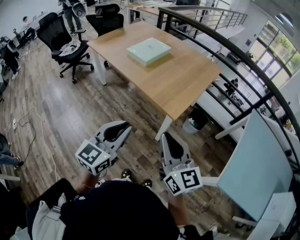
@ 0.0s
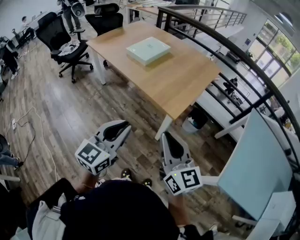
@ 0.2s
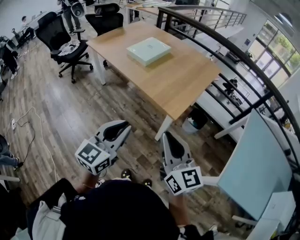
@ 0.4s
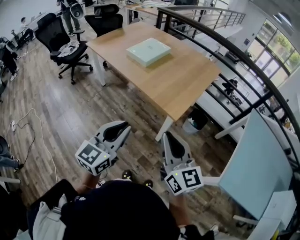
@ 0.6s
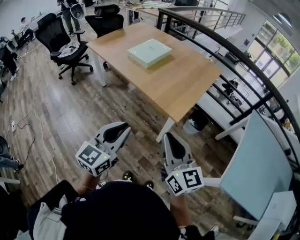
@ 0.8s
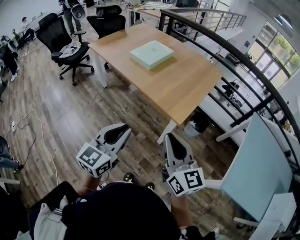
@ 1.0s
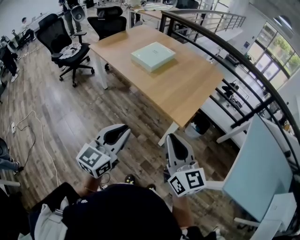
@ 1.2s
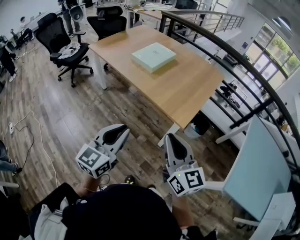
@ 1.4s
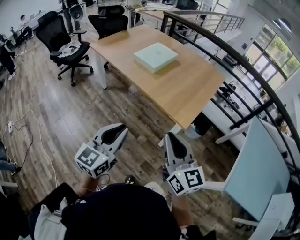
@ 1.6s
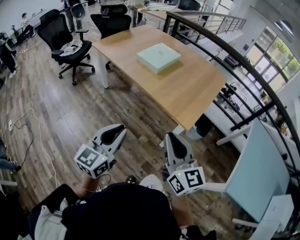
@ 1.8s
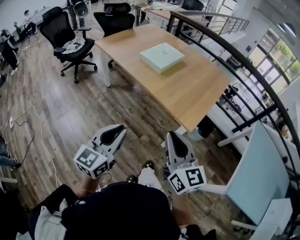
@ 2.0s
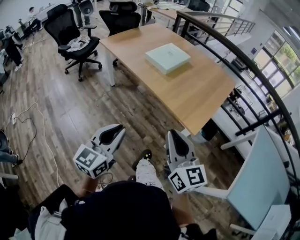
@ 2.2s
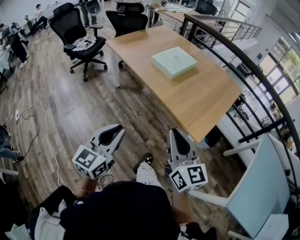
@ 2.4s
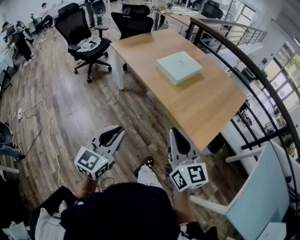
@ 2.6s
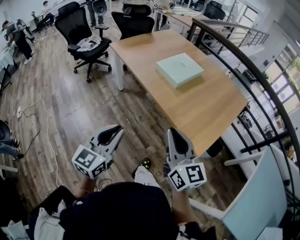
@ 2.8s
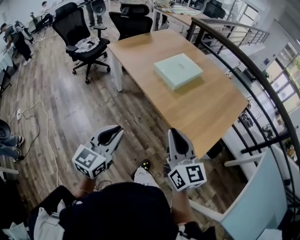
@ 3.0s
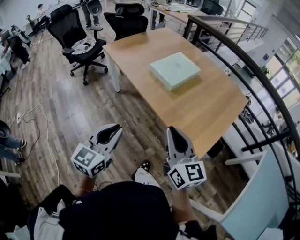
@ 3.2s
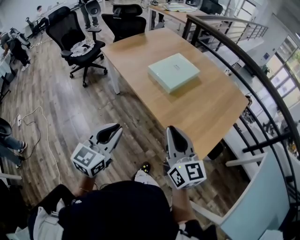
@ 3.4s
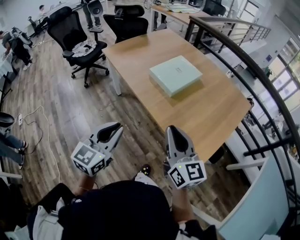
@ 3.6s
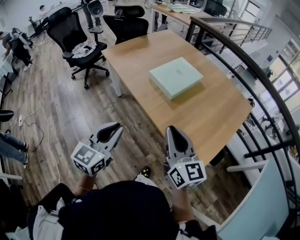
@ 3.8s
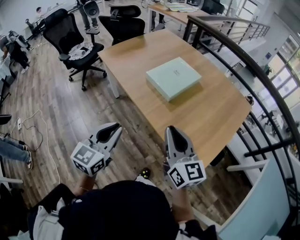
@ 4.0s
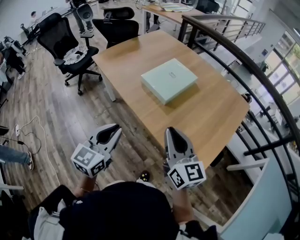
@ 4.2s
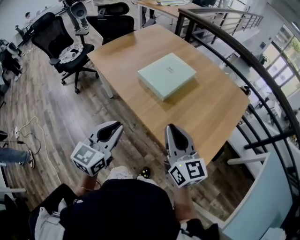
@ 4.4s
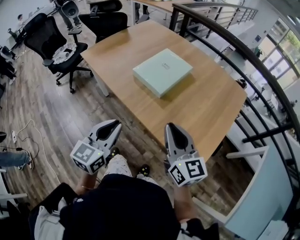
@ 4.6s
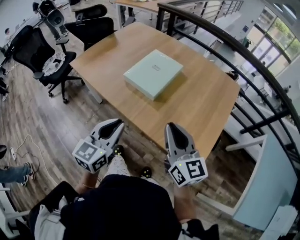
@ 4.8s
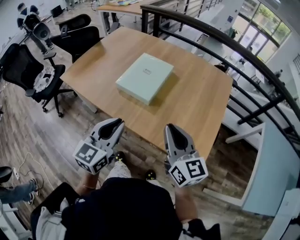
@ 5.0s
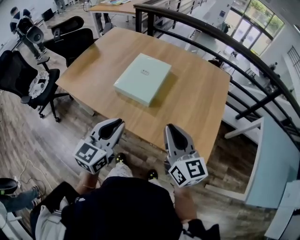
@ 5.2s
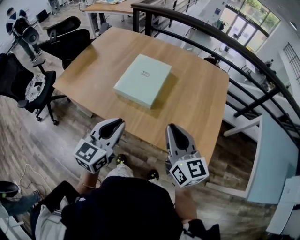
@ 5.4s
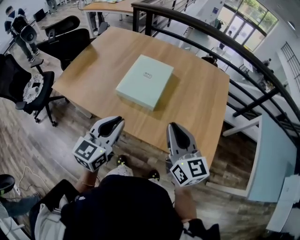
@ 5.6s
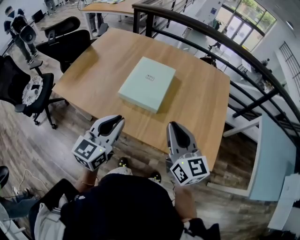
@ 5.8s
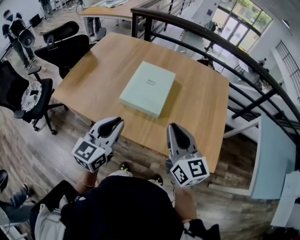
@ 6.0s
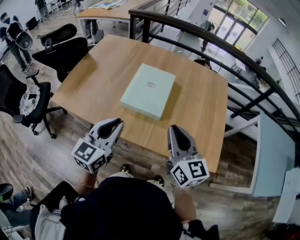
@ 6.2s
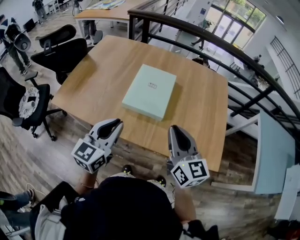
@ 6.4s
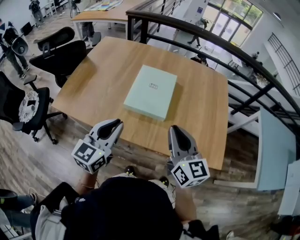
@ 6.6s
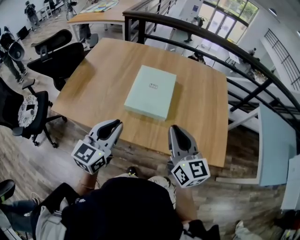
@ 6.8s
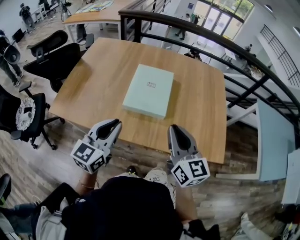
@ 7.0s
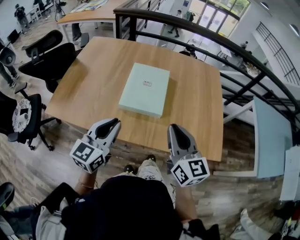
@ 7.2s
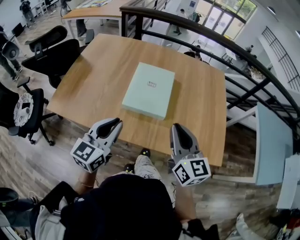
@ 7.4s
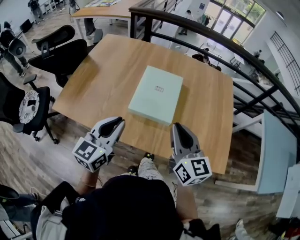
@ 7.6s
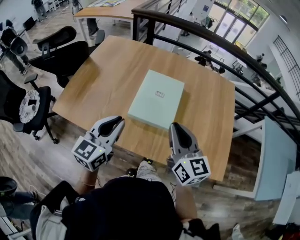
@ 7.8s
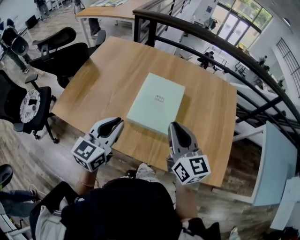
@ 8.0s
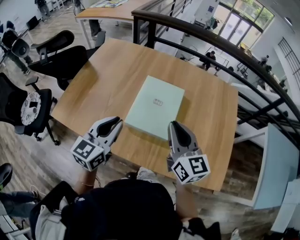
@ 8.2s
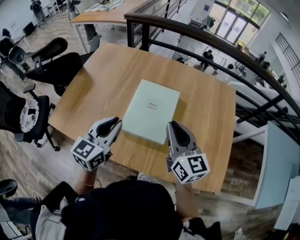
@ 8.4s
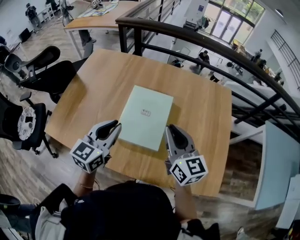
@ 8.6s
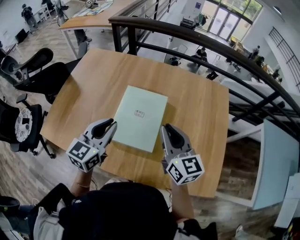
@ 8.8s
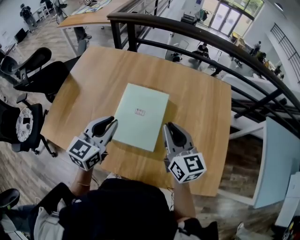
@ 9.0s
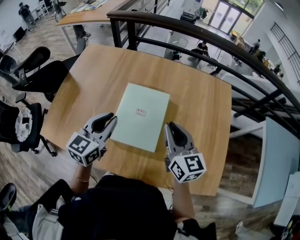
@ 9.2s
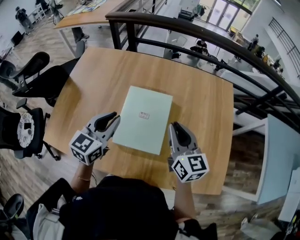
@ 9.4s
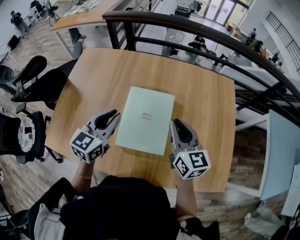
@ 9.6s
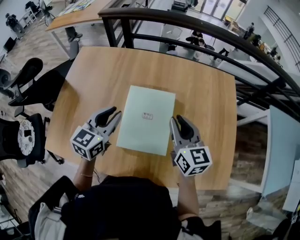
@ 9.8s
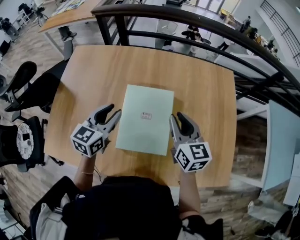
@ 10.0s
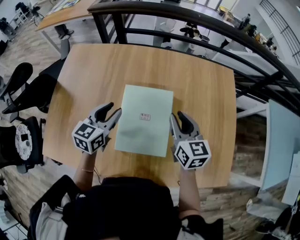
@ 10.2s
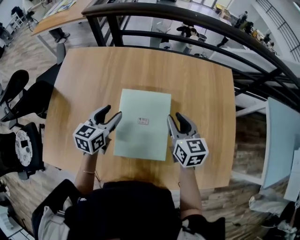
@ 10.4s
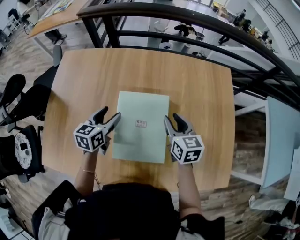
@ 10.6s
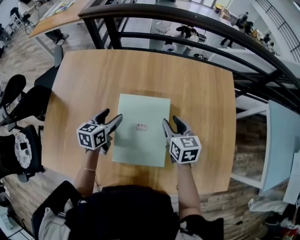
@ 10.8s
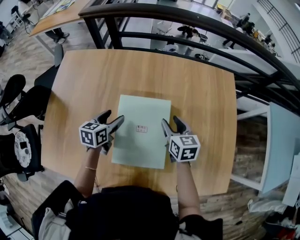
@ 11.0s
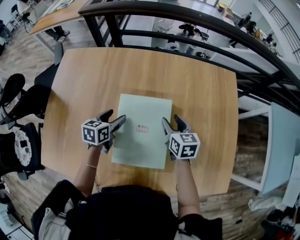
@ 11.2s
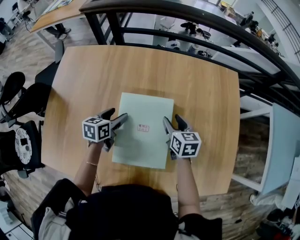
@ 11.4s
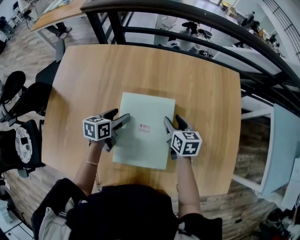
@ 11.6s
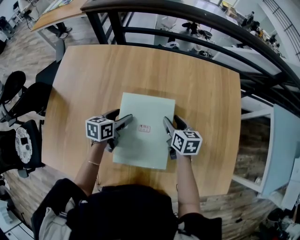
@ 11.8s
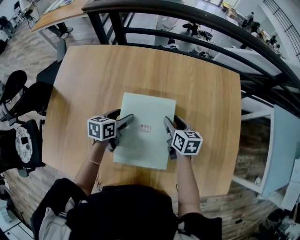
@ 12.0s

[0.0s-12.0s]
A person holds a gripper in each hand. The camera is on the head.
0.0s to 1.6s: Both grippers travel together to the left, about 10 cm.
1.6s to 3.0s: The left gripper moves forward and to the left, some 20 cm; the right gripper shifts about 20 cm forward.
3.0s to 4.4s: Both grippers move forward, some 20 cm.
4.4s to 6.0s: The right gripper shifts by some 15 cm, and swivels approximately 30 degrees. Meanwhile the left gripper shifts by approximately 25 cm, and swivels some 30 degrees.
6.0s to 7.6s: The grippers both shift to the left and forward by roughly 10 cm.
7.6s to 9.0s: The two grippers go approximately 20 cm forward.
9.0s to 10.4s: The right gripper goes roughly 15 cm forward and downward, and rotates about 20 degrees. Meanwhile the left gripper moves forward, downward and to the left, roughly 20 cm, and opens its fingers.
10.4s to 12.0s: The left gripper shifts approximately 10 cm downward, and changes its angle by approximately 20 degrees. Meanwhile the right gripper travels downward and forward by about 15 cm, and opens.

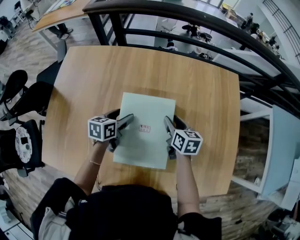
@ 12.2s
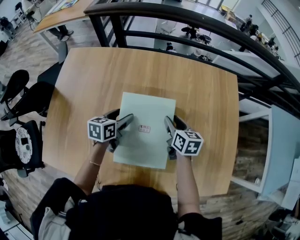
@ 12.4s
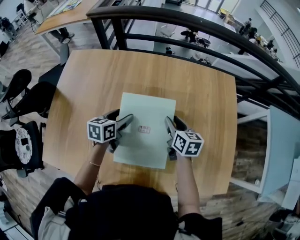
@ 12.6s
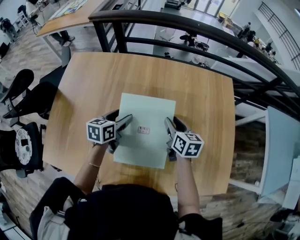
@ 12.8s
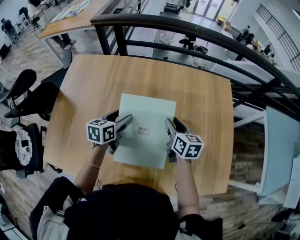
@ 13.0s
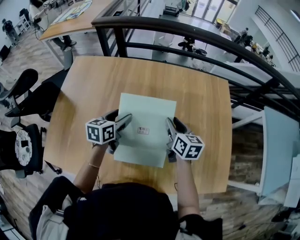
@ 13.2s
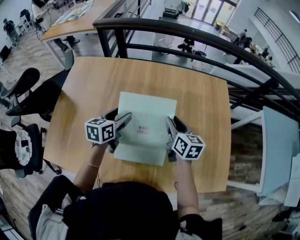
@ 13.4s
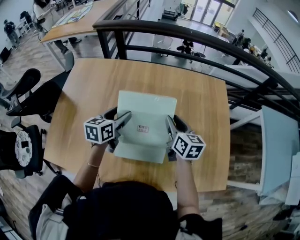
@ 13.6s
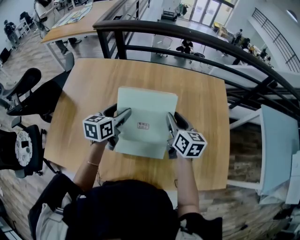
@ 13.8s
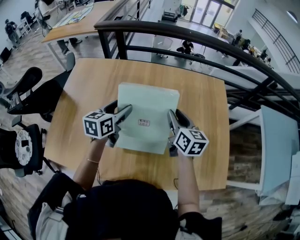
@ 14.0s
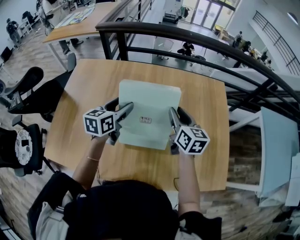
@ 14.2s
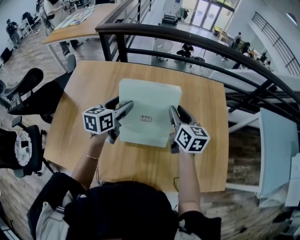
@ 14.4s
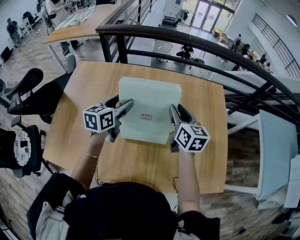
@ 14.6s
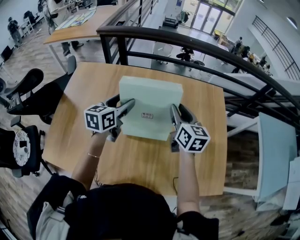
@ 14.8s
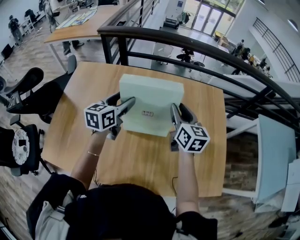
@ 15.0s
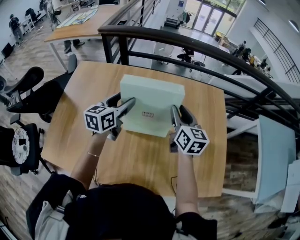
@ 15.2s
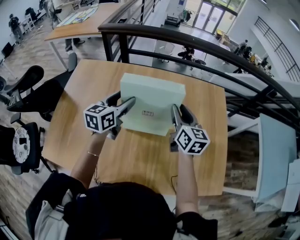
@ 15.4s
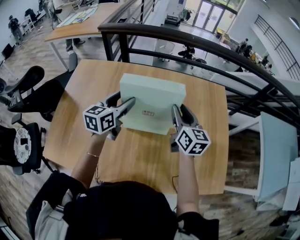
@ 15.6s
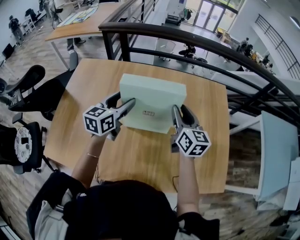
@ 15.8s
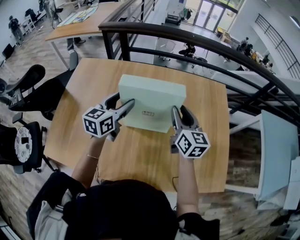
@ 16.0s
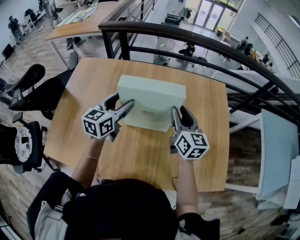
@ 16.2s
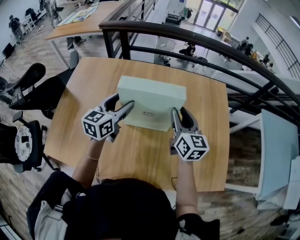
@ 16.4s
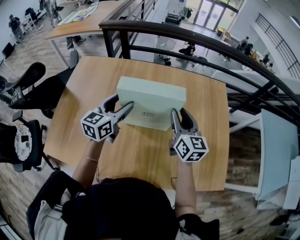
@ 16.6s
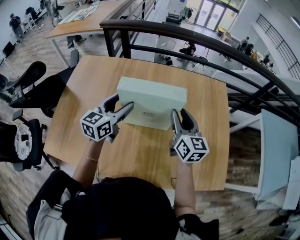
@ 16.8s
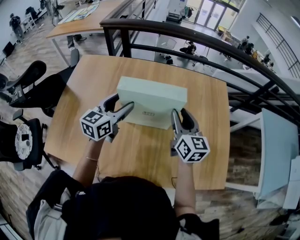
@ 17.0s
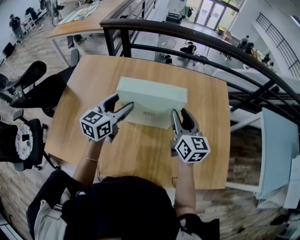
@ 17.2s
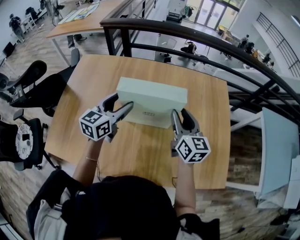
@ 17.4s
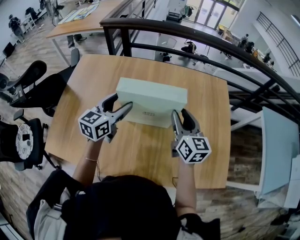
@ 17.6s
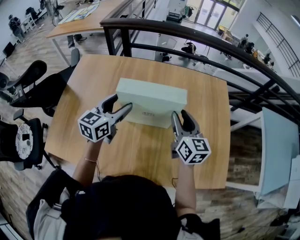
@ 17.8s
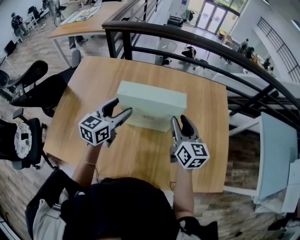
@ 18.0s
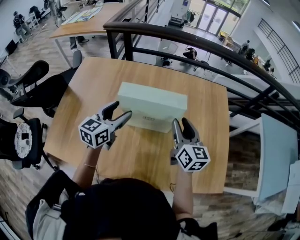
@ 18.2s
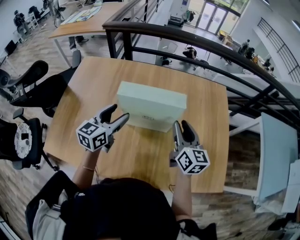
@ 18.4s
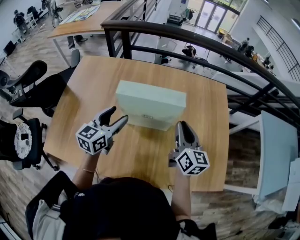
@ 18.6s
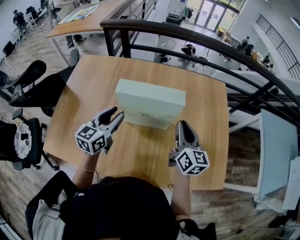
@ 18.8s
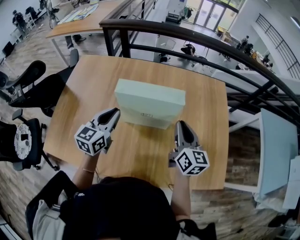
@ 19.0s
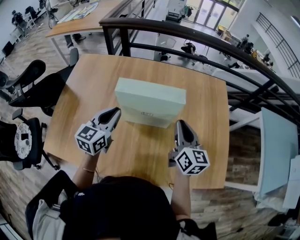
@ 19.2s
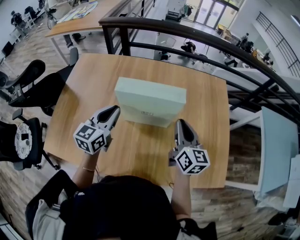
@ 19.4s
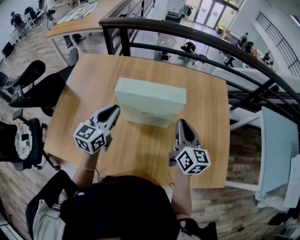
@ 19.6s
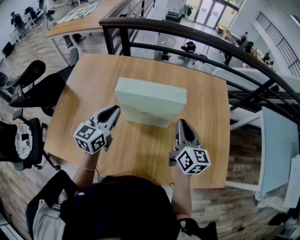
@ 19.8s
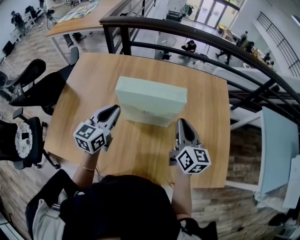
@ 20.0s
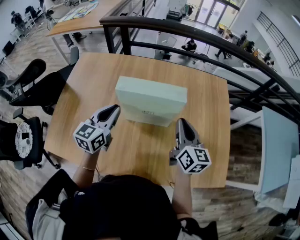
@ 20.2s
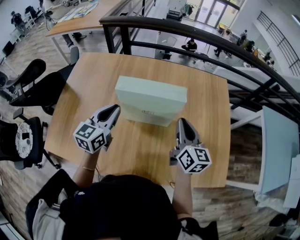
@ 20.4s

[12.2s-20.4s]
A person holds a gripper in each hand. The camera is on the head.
12.2s to 13.8s: Both grippers travel together upward and backward, some 15 cm.
13.8s to 15.4s: The two grippers go roughly 5 cm upward.
15.4s to 17.2s: The two grippers go about 5 cm backward.
17.2s to 18.8s: The left gripper ends up about 5 cm from where it was, and closes its fingers.
18.8s to 20.4s: The left gripper closes up.

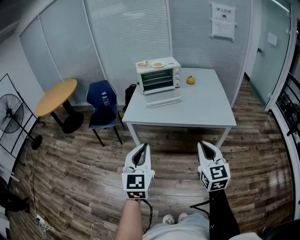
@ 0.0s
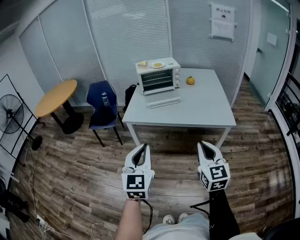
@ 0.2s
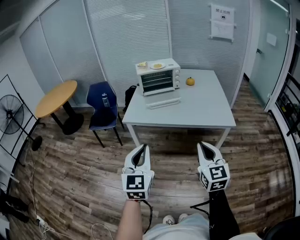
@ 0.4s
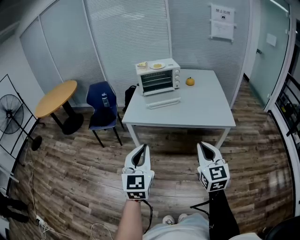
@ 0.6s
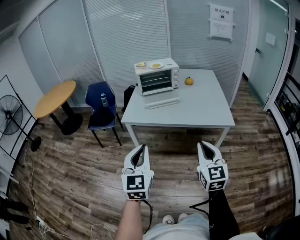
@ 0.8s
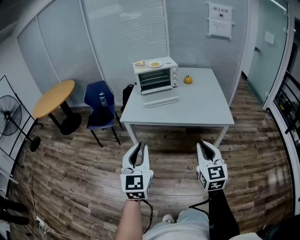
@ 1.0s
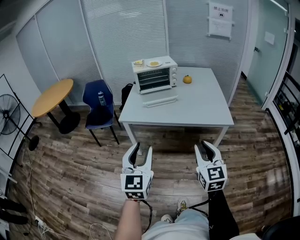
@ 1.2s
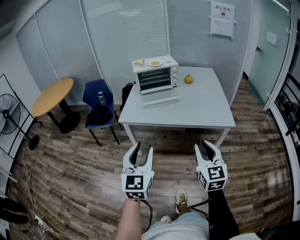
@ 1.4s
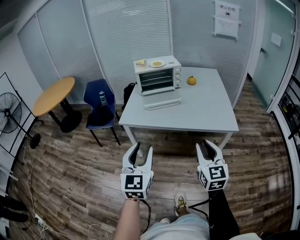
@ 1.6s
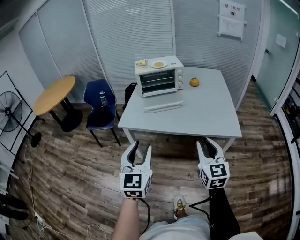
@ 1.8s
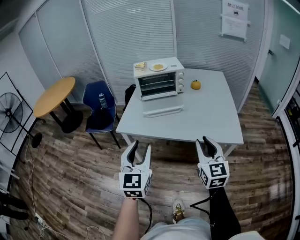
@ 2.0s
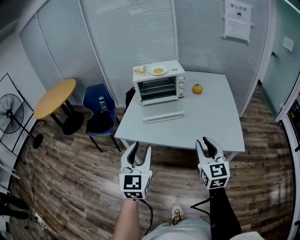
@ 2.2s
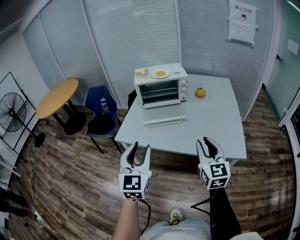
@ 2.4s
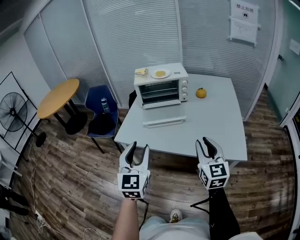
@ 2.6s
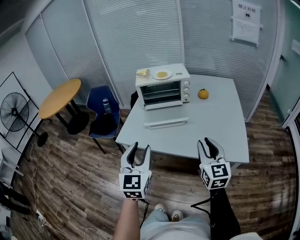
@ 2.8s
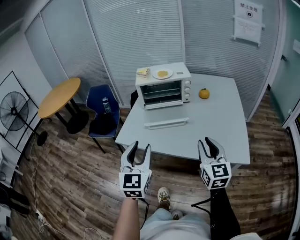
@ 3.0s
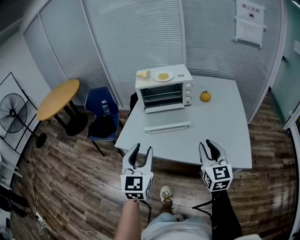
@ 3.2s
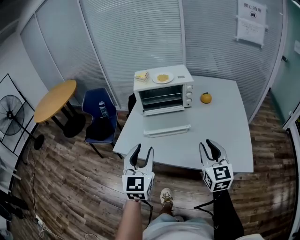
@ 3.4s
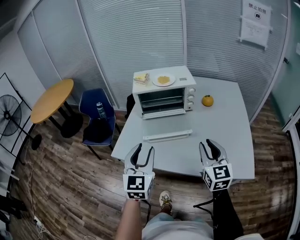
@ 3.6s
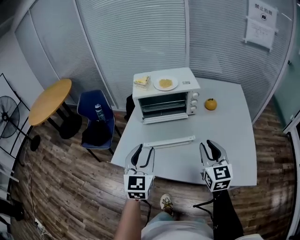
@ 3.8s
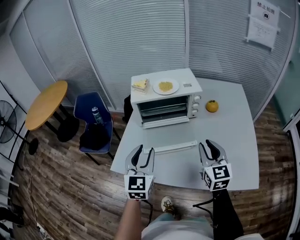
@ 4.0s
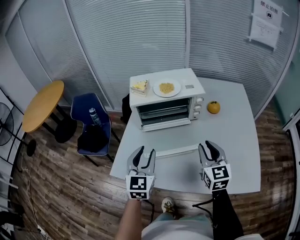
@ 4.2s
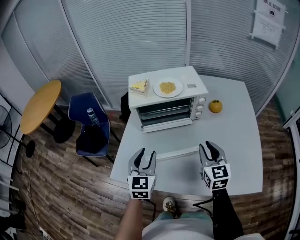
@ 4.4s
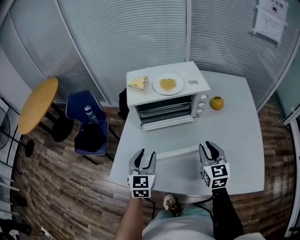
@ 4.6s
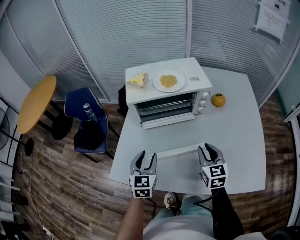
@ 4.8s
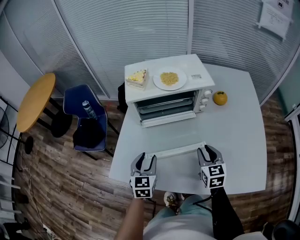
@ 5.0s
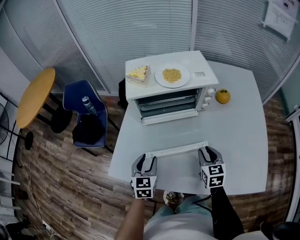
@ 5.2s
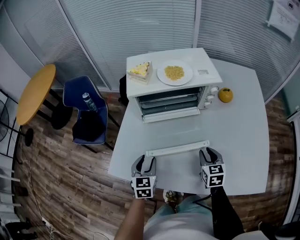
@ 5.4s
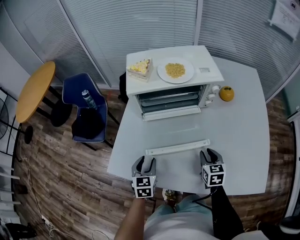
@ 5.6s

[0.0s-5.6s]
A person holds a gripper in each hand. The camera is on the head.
0.0s to 1.4s: The left gripper opens.
1.4s to 2.8s: The grippers both shift forward by about 25 cm.
2.8s to 4.2s: The two grippers go roughly 30 cm forward.
4.2s to 5.6s: Both grippers travel together downward, approximately 20 cm. The left gripper swivels some 30 degrees. Meanwhile the right gripper turns by about 30 degrees.
